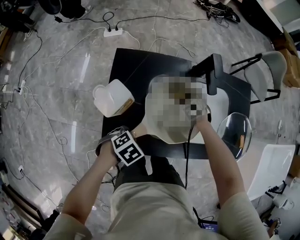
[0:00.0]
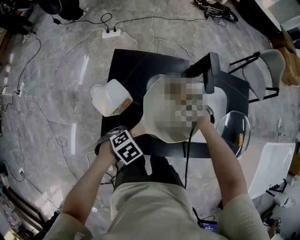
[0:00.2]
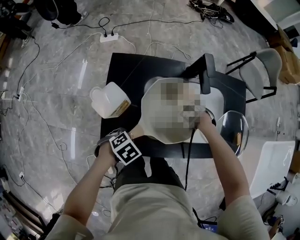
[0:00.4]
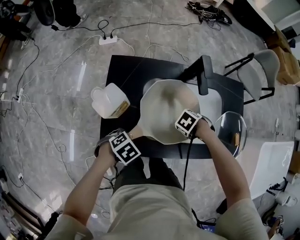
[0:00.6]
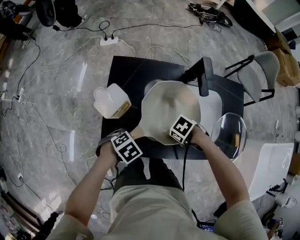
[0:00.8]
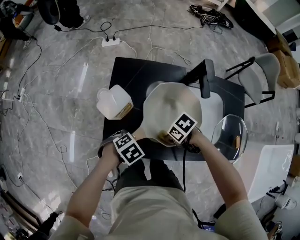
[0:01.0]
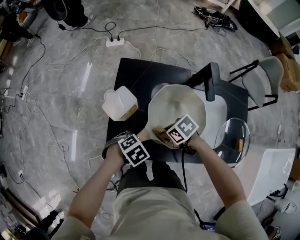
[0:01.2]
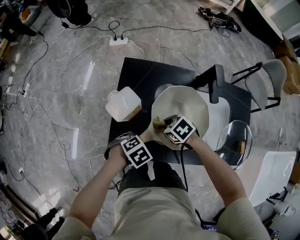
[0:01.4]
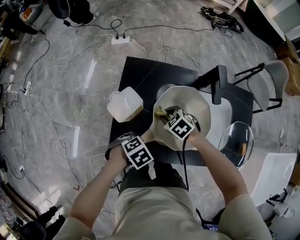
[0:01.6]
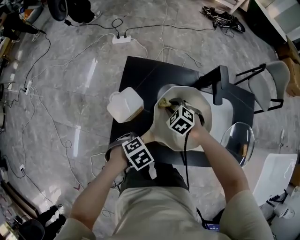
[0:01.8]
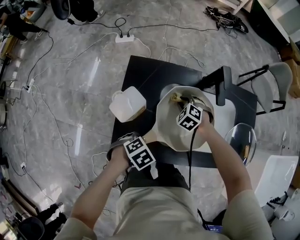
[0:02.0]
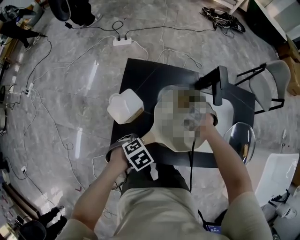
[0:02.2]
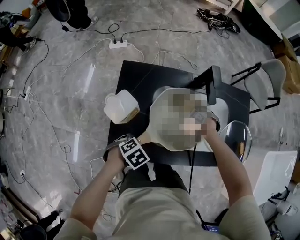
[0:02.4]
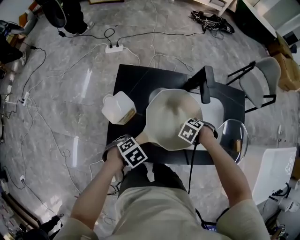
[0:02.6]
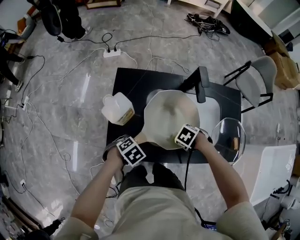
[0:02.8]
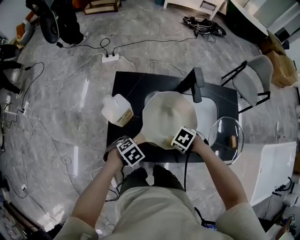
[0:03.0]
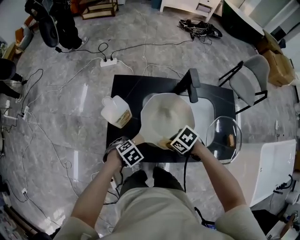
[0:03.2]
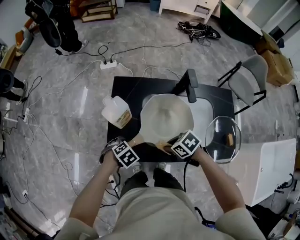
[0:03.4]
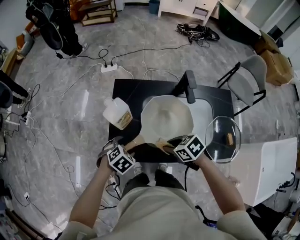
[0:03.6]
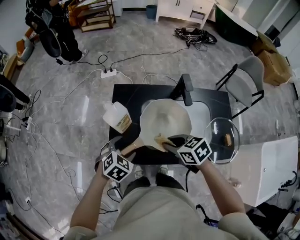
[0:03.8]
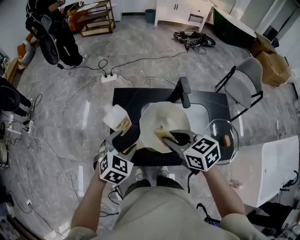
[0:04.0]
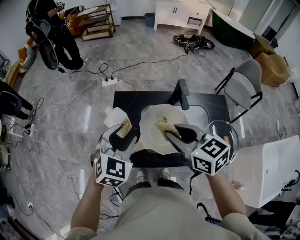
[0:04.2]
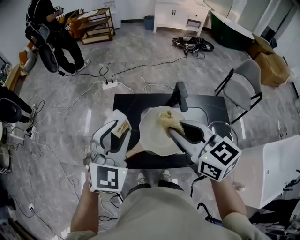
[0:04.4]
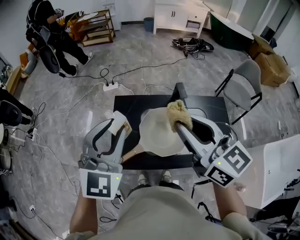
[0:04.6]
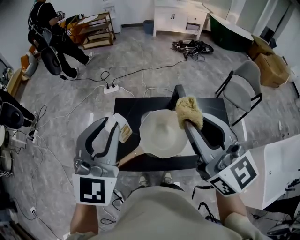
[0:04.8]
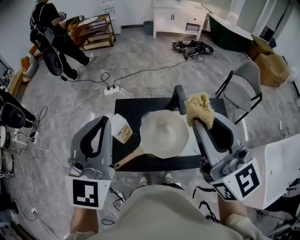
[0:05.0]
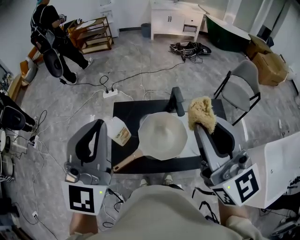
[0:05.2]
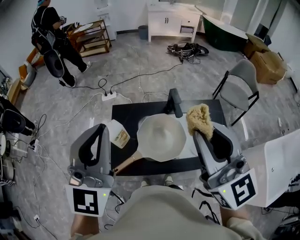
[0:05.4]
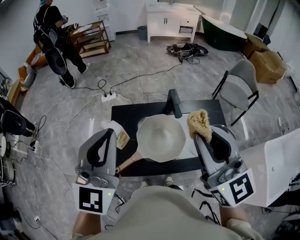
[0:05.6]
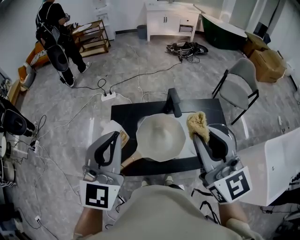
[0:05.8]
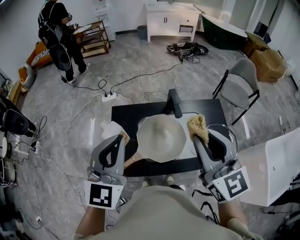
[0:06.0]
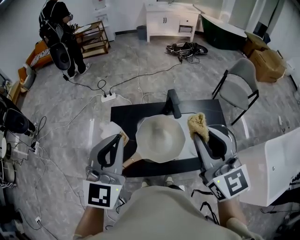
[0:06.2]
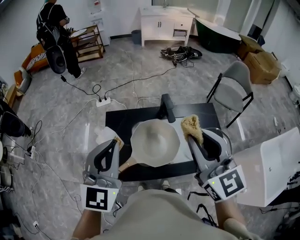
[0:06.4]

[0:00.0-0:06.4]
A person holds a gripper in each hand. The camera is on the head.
0:00.0 to 0:01.6: The right gripper changes place by about 15 cm, and rotates approximately 20 degrees.
0:01.6 to 0:03.2: The right gripper changes place by roughly 15 cm, and swivels approximately 30 degrees. The left gripper opens.
0:03.2 to 0:04.8: The grippers both shift upward by some 50 cm. The right gripper points its fingers about 70 degrees further upward; the left gripper points its fingers some 70 degrees further upward, and closes its fingers.
0:04.8 to 0:06.4: The right gripper shifts about 5 cm to the right.

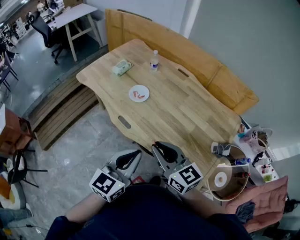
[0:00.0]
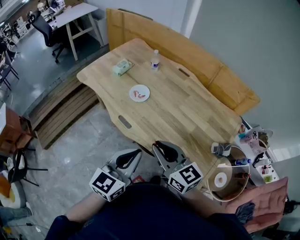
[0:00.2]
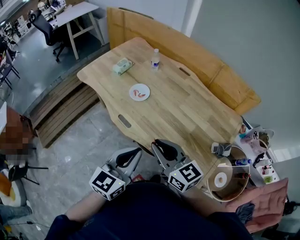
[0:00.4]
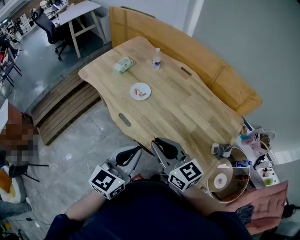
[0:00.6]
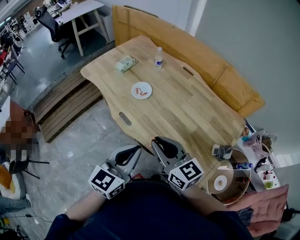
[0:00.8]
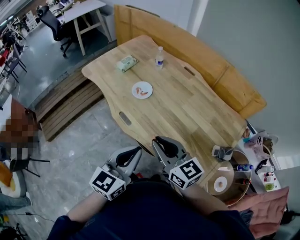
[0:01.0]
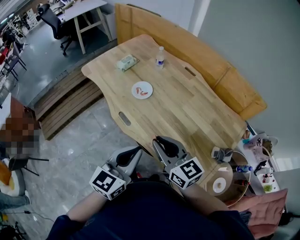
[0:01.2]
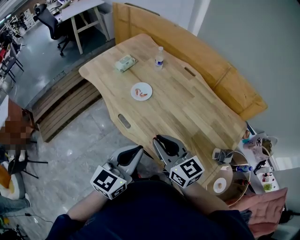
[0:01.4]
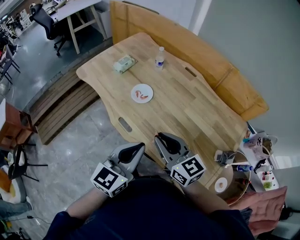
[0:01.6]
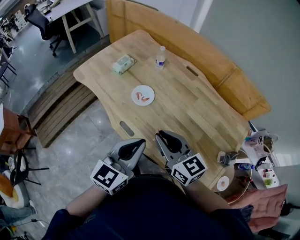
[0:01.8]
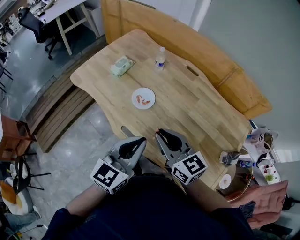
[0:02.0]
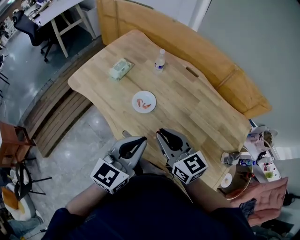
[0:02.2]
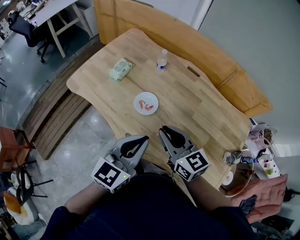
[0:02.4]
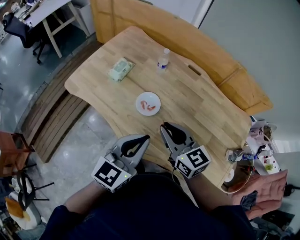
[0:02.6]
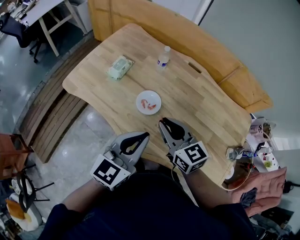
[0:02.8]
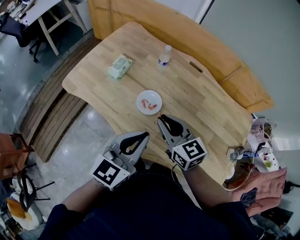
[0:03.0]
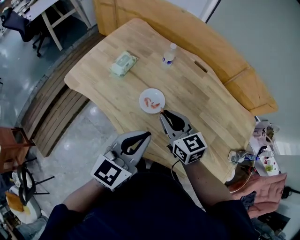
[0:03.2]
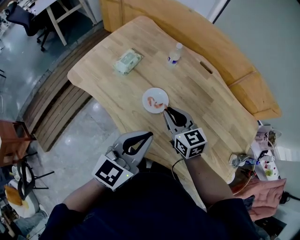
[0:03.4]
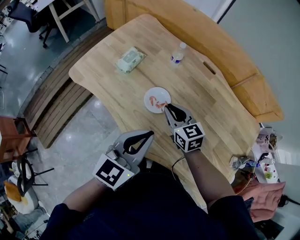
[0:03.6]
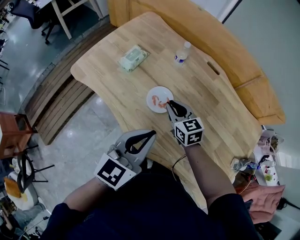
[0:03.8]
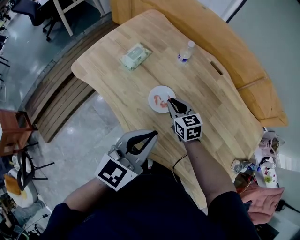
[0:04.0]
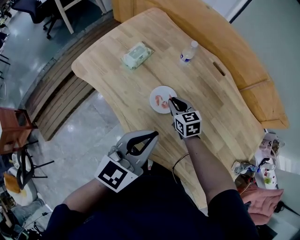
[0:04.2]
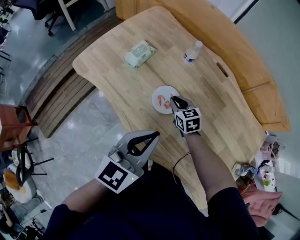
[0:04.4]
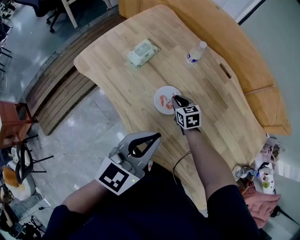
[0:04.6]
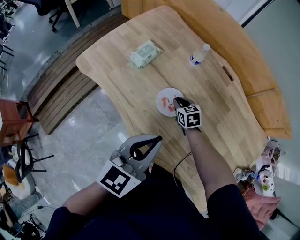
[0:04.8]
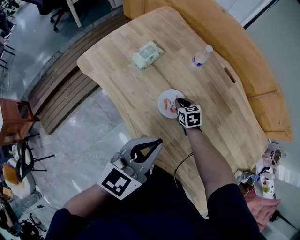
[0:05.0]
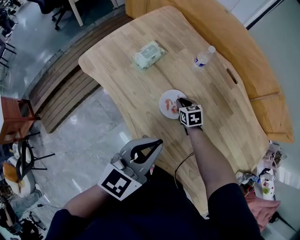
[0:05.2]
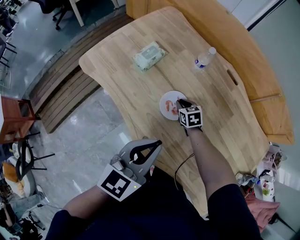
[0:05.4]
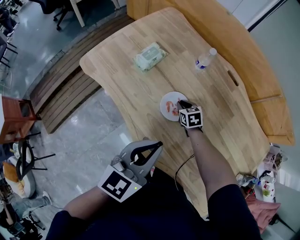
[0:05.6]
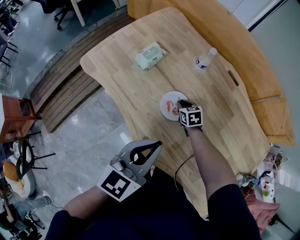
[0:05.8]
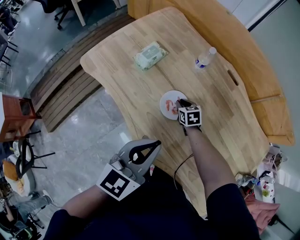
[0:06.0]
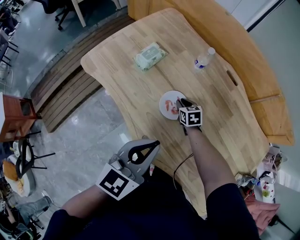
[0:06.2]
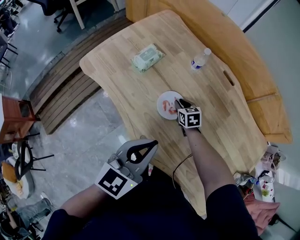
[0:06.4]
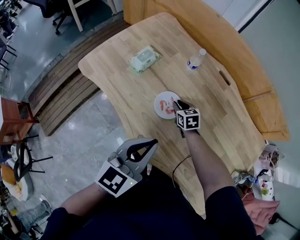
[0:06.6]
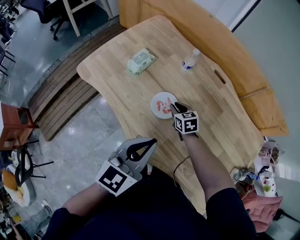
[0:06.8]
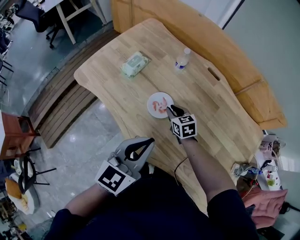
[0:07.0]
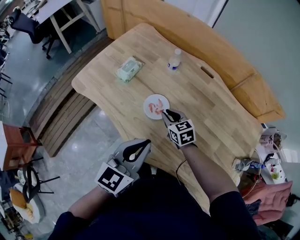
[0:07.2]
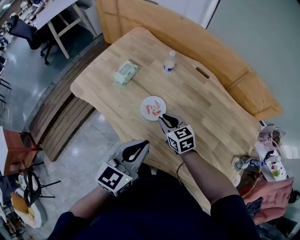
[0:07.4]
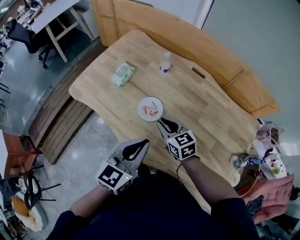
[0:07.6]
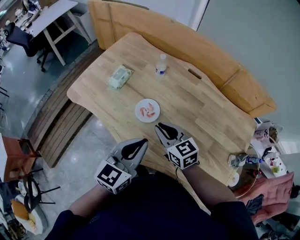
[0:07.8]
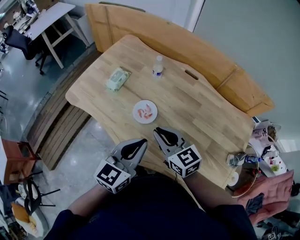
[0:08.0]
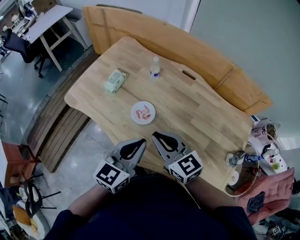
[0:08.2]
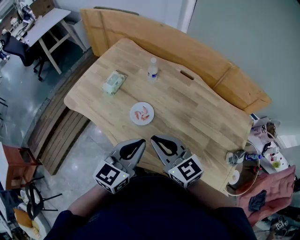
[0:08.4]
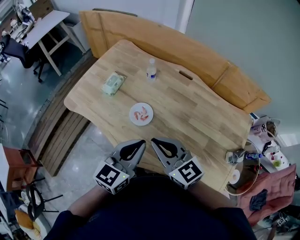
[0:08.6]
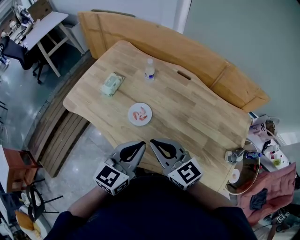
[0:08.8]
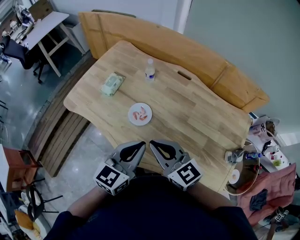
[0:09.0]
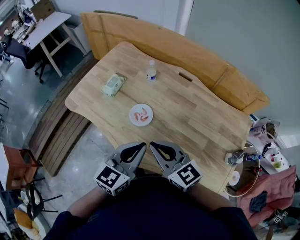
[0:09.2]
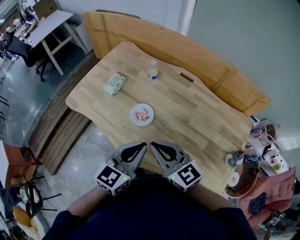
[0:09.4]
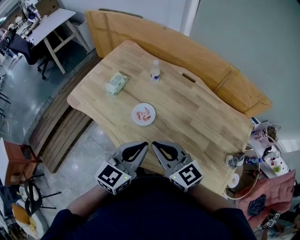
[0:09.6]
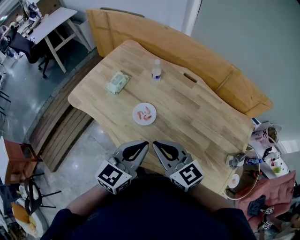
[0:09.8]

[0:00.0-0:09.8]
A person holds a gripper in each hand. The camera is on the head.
0:00.0 to 0:01.4: The left gripper shifts by some 5 cm. Meanwhile the right gripper goes some 5 cm forward.
0:01.4 to 0:02.8: The two grippers go roughly 25 cm forward and to the left.
0:02.8 to 0:04.2: The left gripper shifts by approximately 5 cm, while the right gripper is displaced downward and forward by approximately 25 cm, and rotates about 20 degrees.
0:04.2 to 0:05.6: The right gripper travels downward by approximately 10 cm.
0:05.6 to 0:07.0: The right gripper is displaced upward and backward by roughly 10 cm. Meanwhile the left gripper shifts by some 5 cm.
0:07.0 to 0:08.4: The left gripper travels to the right by approximately 5 cm, while the right gripper travels upward and backward by some 30 cm, and rotates some 30 degrees.
0:08.4 to 0:09.8: There are only small adjustments of the grippers.

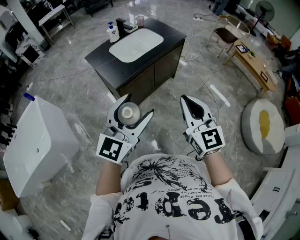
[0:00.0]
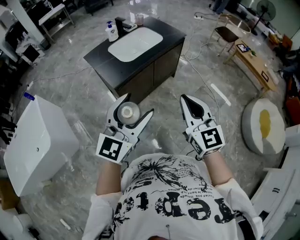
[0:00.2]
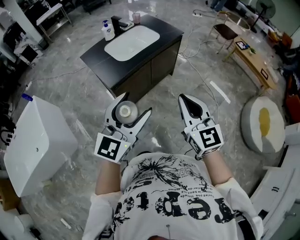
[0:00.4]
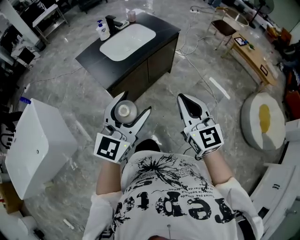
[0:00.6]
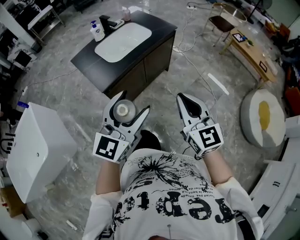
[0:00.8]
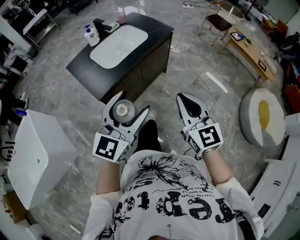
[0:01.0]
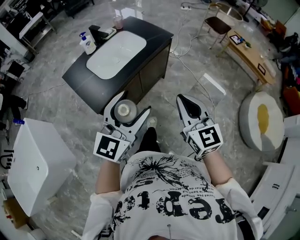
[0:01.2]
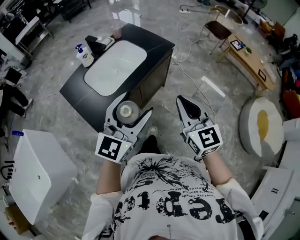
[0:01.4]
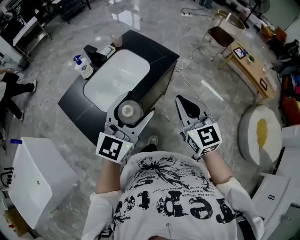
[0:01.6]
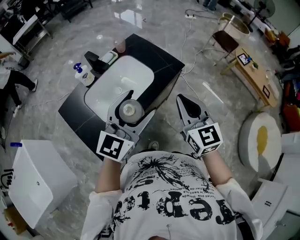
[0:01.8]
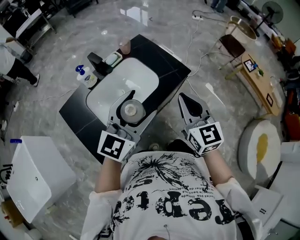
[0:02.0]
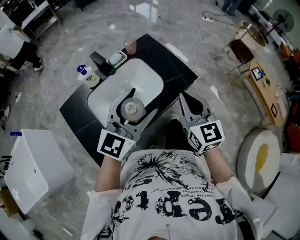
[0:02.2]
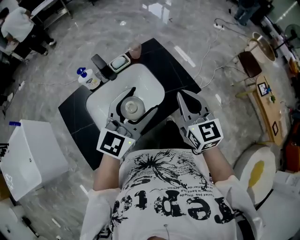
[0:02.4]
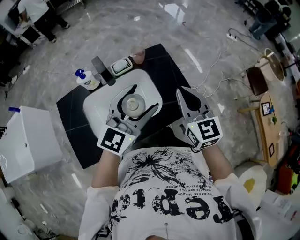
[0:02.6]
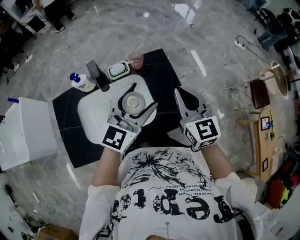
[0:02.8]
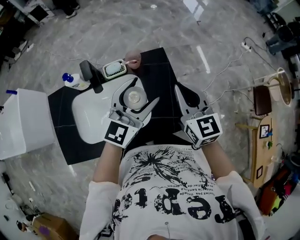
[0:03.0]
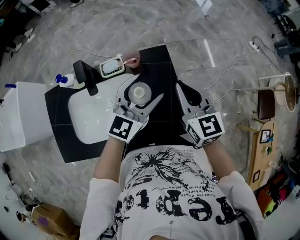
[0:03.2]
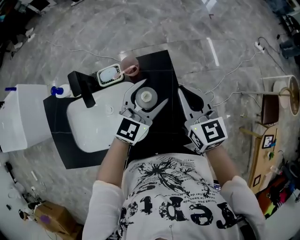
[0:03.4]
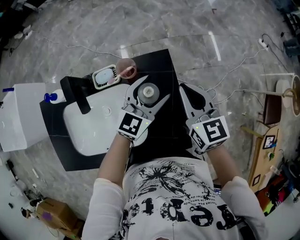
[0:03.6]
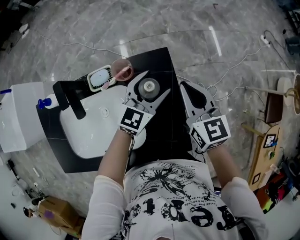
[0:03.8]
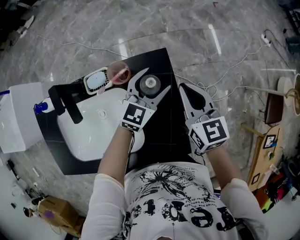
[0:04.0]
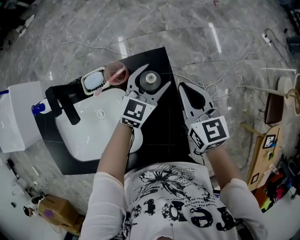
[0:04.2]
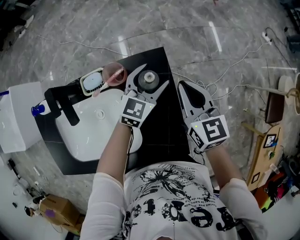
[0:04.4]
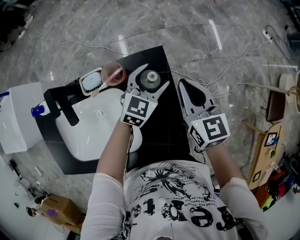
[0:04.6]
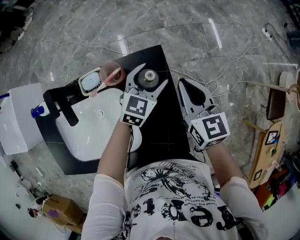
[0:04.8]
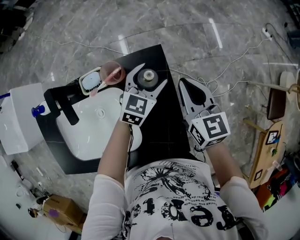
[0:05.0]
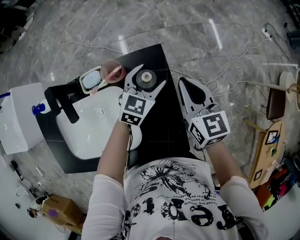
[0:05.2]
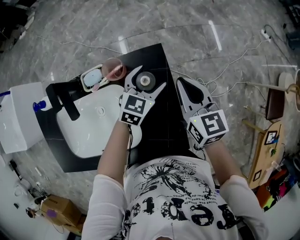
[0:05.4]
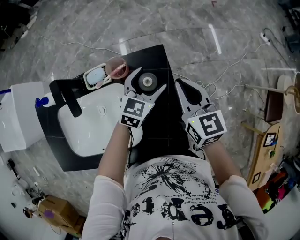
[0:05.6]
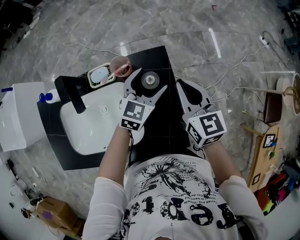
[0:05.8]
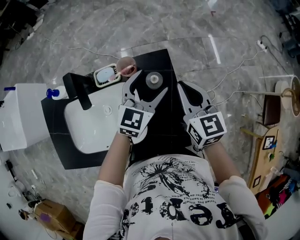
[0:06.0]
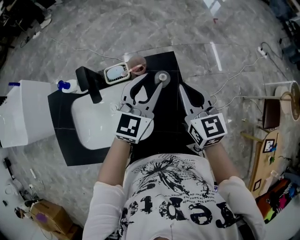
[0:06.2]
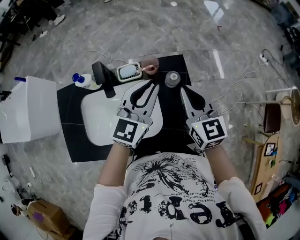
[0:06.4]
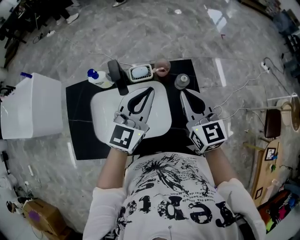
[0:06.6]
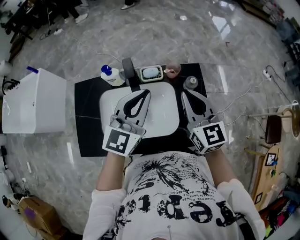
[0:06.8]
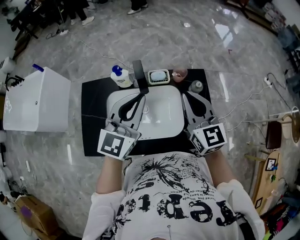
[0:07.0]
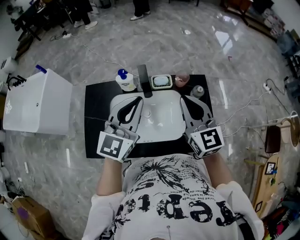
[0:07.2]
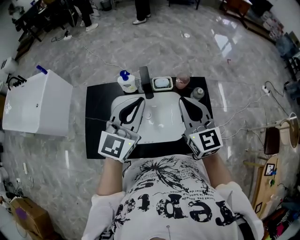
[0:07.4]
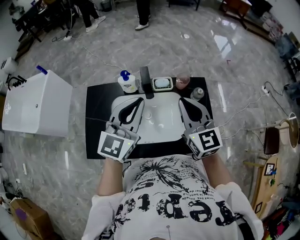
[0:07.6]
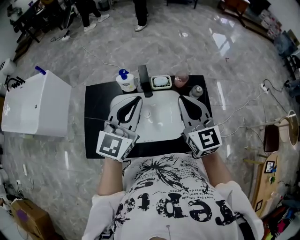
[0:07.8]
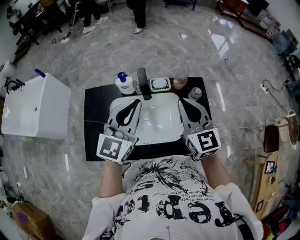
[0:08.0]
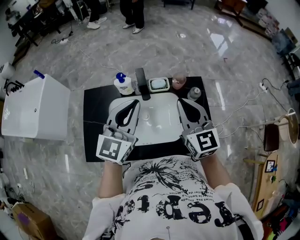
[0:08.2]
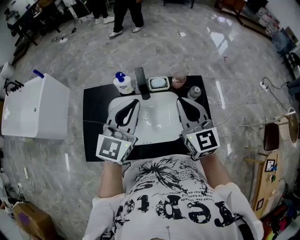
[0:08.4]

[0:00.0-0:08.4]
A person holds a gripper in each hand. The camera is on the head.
0:00.0 to 0:01.4: Both grippers travel together forward, some 35 cm.
0:01.4 to 0:02.8: The pair of grippers is taken some 60 cm. The left gripper turns by roughly 30 degrees. Meanwhile the right gripper turns by about 30 degrees.
0:02.8 to 0:04.2: The two grippers go approximately 35 cm forward and downward. The left gripper changes its angle by about 20 degrees.
0:04.2 to 0:05.6: The grippers make only small movements.
0:05.6 to 0:07.0: The left gripper goes roughly 50 cm upward, to the left and backward, turns by roughly 30 degrees, and closes its fingers. The right gripper moves to the left, upward and backward, some 35 cm, and changes its angle by approximately 20 degrees.
0:07.0 to 0:08.4: The grippers make only small movements.
